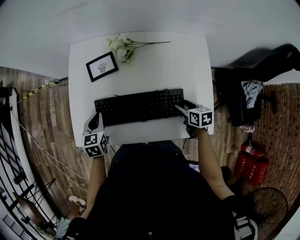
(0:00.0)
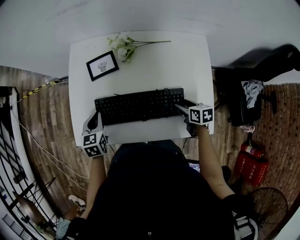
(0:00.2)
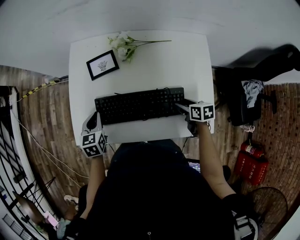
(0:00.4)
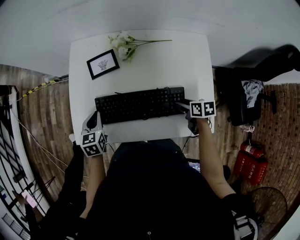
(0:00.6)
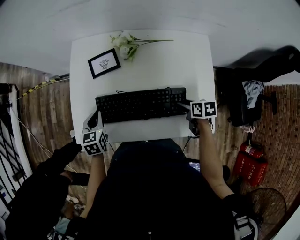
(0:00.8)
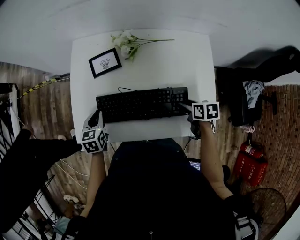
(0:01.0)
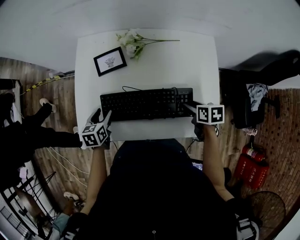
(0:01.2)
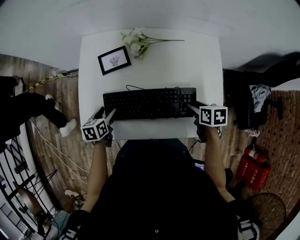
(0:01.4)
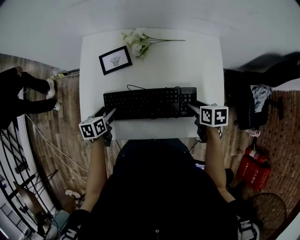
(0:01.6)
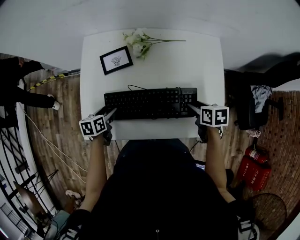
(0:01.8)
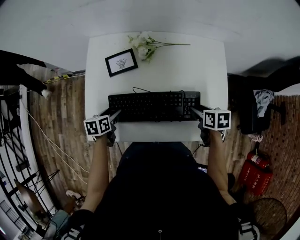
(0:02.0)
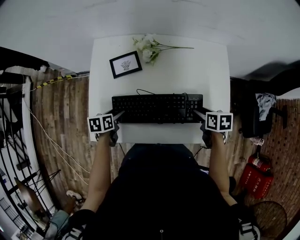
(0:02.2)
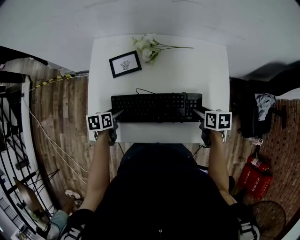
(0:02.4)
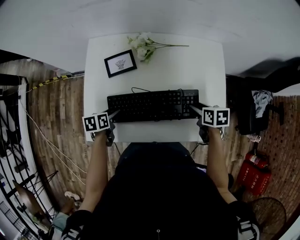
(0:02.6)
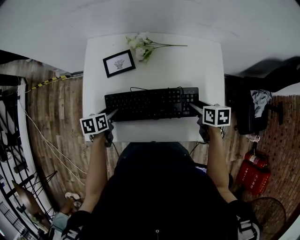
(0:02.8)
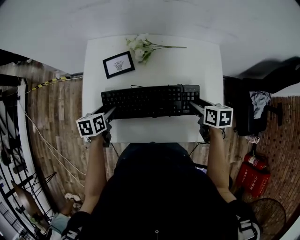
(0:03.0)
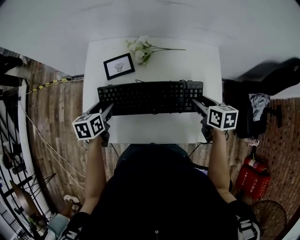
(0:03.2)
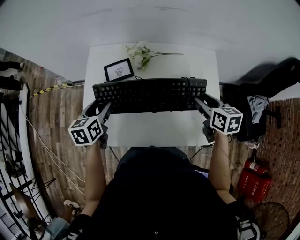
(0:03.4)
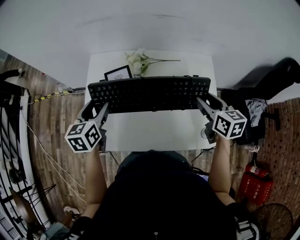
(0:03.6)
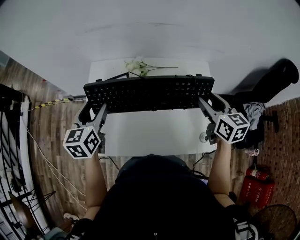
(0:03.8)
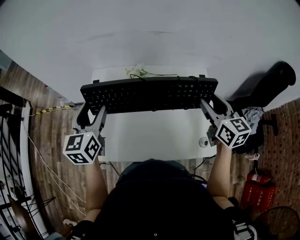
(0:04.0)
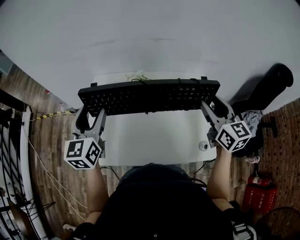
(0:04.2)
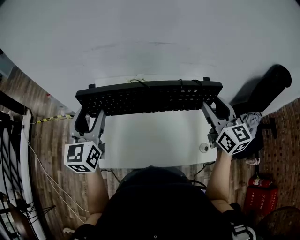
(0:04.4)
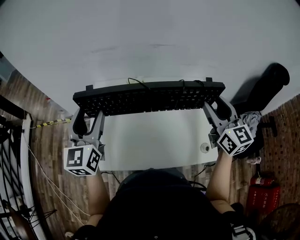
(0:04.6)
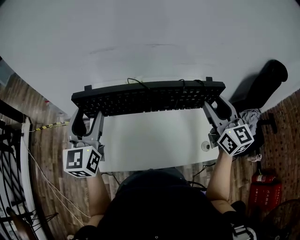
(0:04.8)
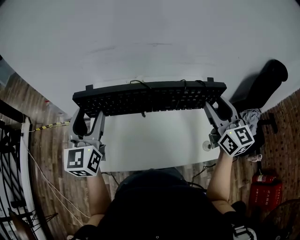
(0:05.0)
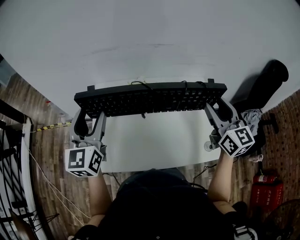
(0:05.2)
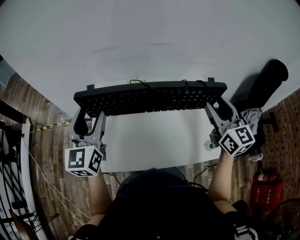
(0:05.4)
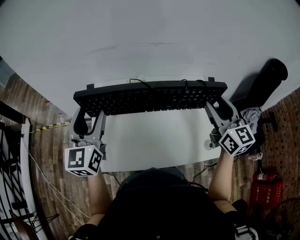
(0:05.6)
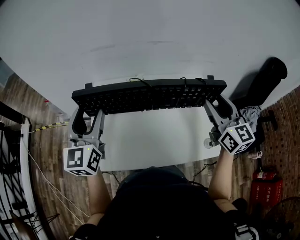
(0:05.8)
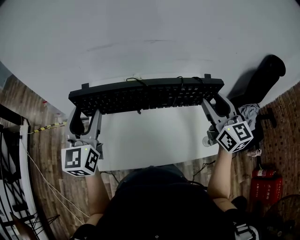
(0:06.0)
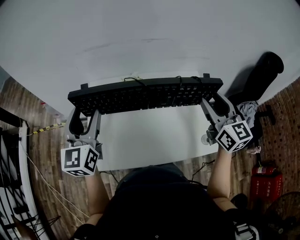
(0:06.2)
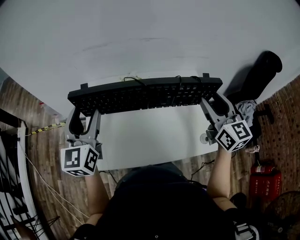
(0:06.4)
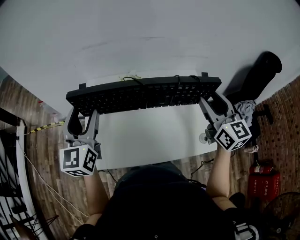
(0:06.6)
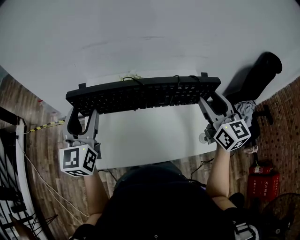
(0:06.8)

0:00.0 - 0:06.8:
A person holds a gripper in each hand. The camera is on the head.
0:00.0 - 0:01.4: The left gripper goes approximately 5 cm downward, swivels about 20 degrees, and opens its fingers.
0:01.4 - 0:02.8: The grippers stay close to where they were, moving slightly.
0:02.8 - 0:04.0: The grippers both shift upward by roughly 25 cm. The right gripper angles its fingers upward, by about 40 degrees. The left gripper points its fingers some 40 degrees further upward.
0:04.0 - 0:05.4: The right gripper moves about 5 cm. The left gripper travels upward by roughly 5 cm.
0:05.4 - 0:06.8: Both grippers stay about where they are.

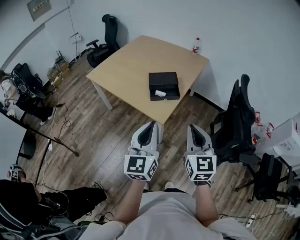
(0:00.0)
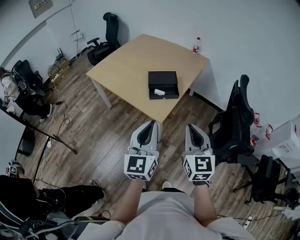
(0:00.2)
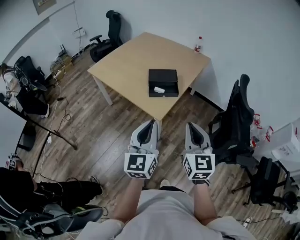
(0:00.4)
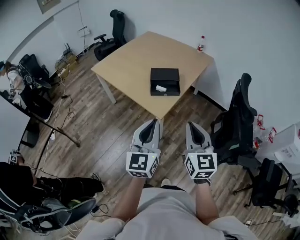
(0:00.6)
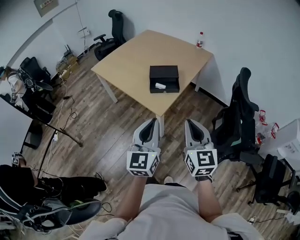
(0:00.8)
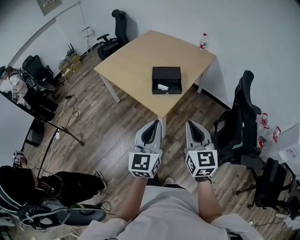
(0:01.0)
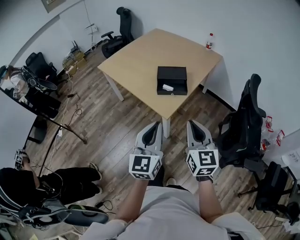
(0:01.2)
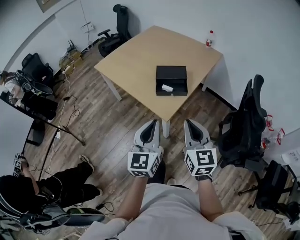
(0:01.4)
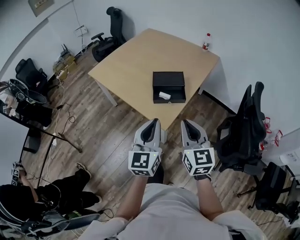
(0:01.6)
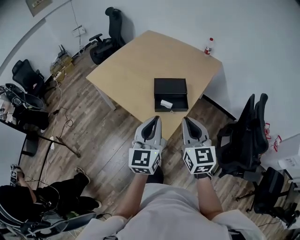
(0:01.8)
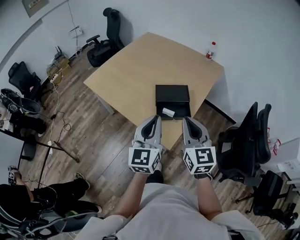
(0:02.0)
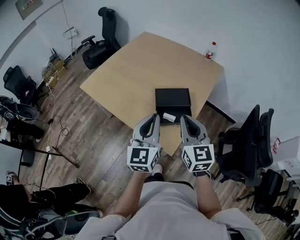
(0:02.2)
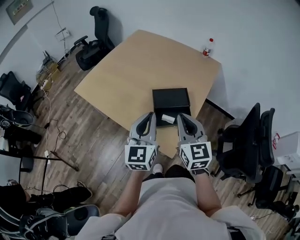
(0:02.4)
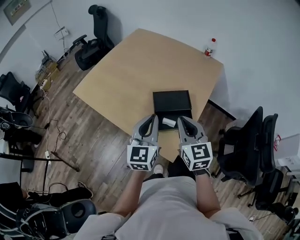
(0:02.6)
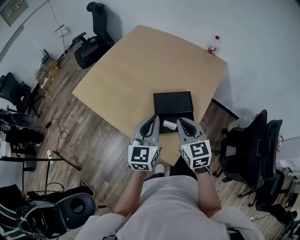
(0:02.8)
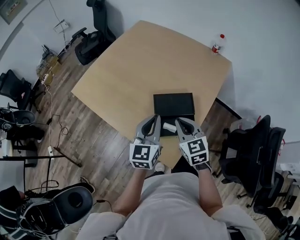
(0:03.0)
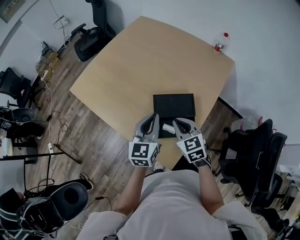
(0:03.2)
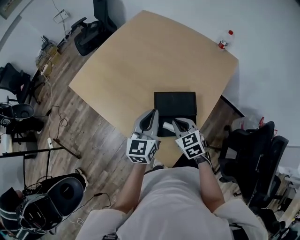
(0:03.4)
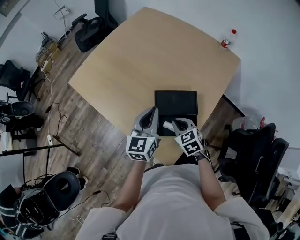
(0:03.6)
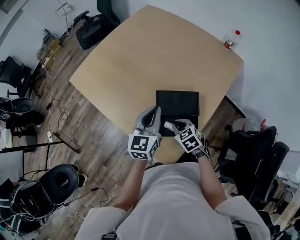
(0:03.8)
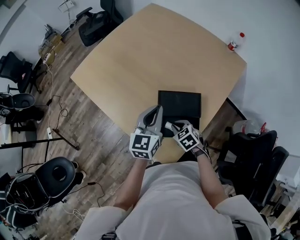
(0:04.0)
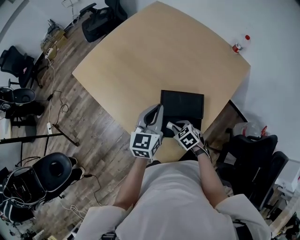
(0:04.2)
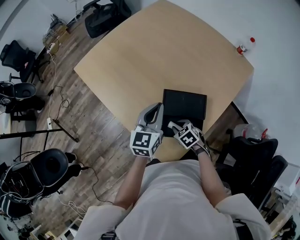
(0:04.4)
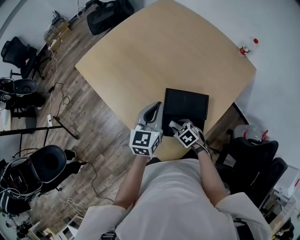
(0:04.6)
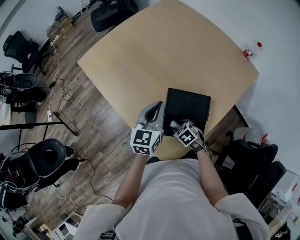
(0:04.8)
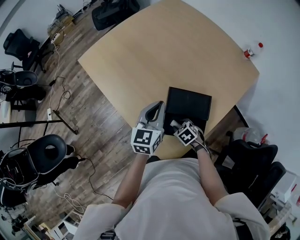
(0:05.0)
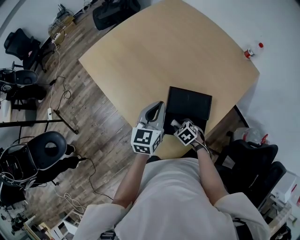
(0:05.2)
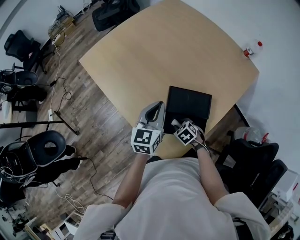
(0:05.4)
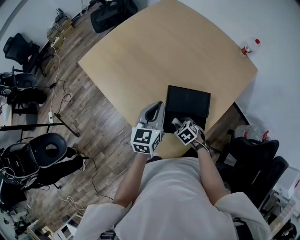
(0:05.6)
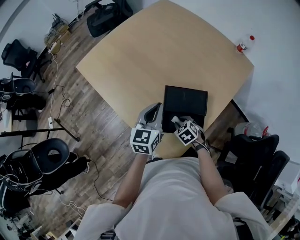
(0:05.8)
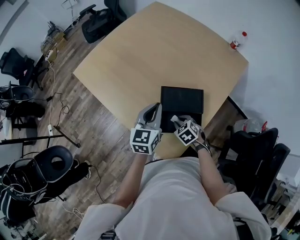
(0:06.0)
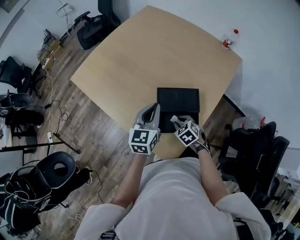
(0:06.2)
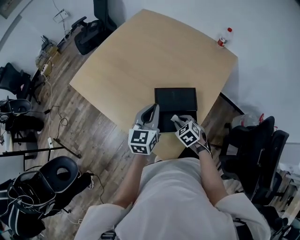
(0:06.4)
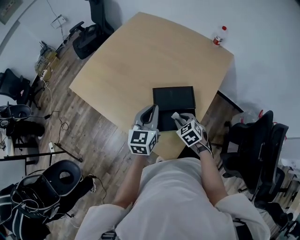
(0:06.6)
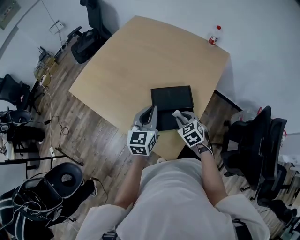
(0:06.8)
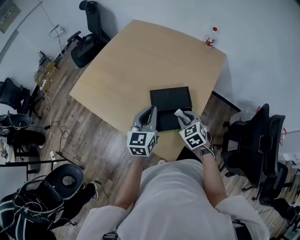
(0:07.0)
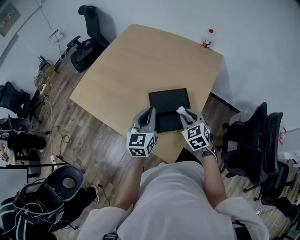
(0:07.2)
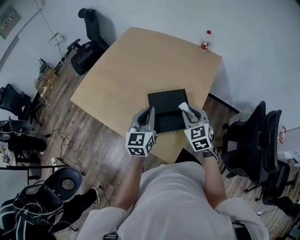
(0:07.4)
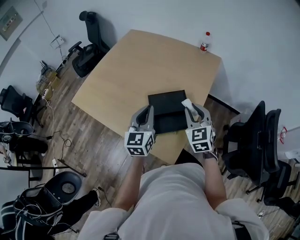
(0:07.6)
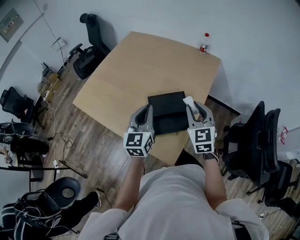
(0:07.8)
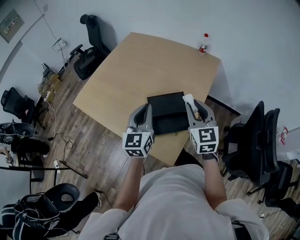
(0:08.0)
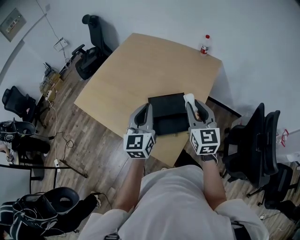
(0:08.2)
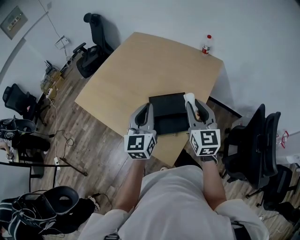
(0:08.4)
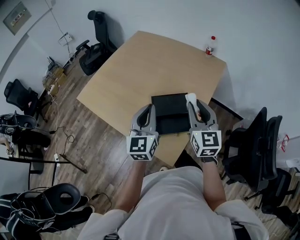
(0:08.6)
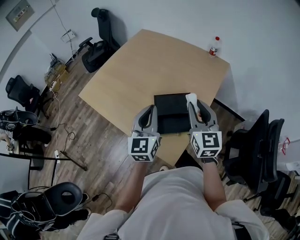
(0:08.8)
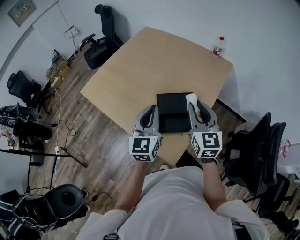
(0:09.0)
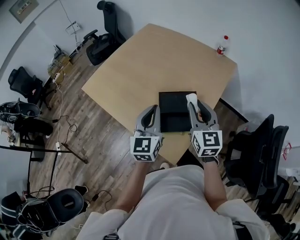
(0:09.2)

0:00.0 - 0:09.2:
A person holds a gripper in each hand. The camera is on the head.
0:00.0 - 0:01.6: Both grippers travel together forward, some 10 cm.
0:01.6 - 0:03.0: The two grippers go about 35 cm forward. The right gripper rotates roughly 20 degrees.
0:03.0 - 0:04.6: The right gripper is displaced downward by roughly 25 cm, angles its fingers downward, by approximately 40 degrees, and opens. Meanwhile the left gripper shifts by about 10 cm.
0:04.6 - 0:06.2: There are only small adjustments of the grippers.
0:06.2 - 0:07.6: The right gripper goes about 25 cm upward, and points its fingers about 40 degrees further upward; the left gripper goes approximately 5 cm upward.
0:07.6 - 0:09.2: The right gripper shifts approximately 5 cm upward, and turns by some 30 degrees.

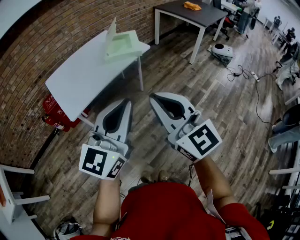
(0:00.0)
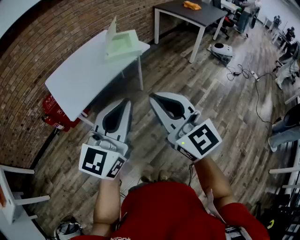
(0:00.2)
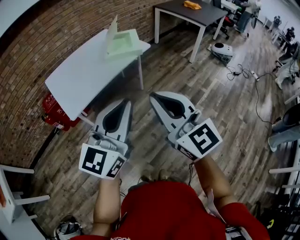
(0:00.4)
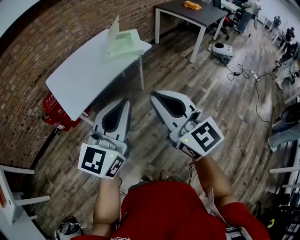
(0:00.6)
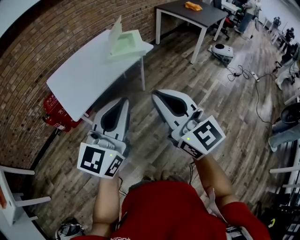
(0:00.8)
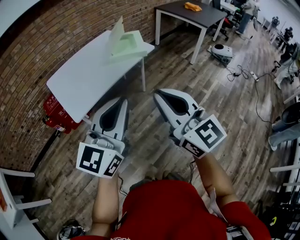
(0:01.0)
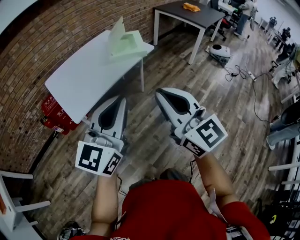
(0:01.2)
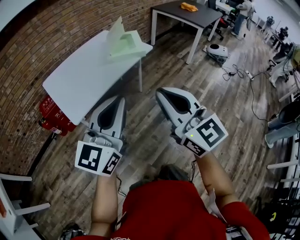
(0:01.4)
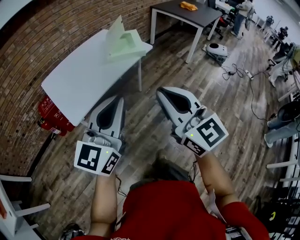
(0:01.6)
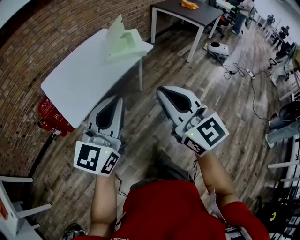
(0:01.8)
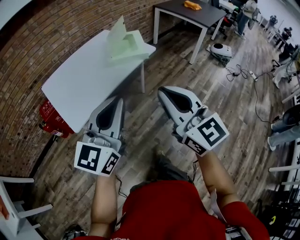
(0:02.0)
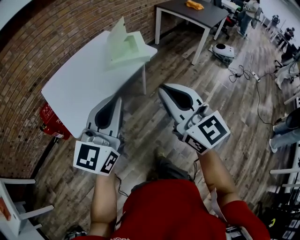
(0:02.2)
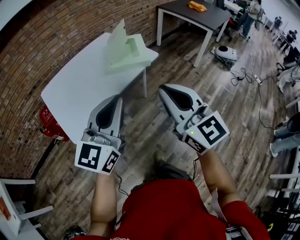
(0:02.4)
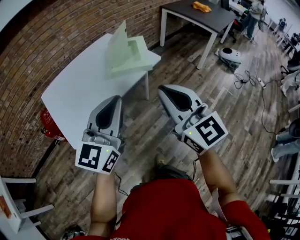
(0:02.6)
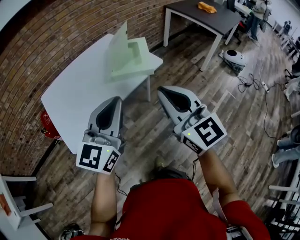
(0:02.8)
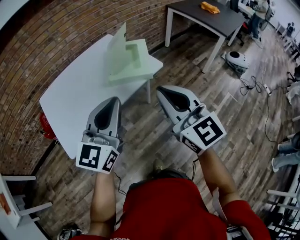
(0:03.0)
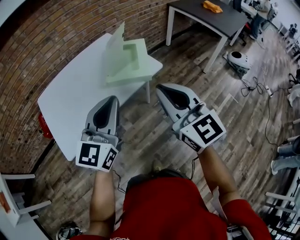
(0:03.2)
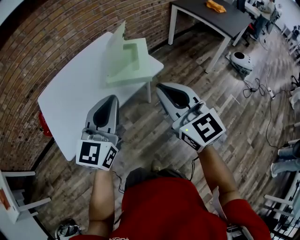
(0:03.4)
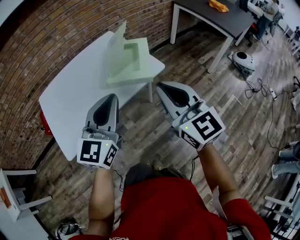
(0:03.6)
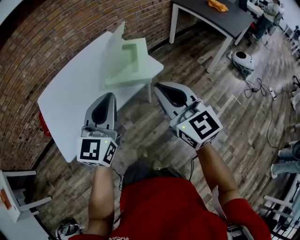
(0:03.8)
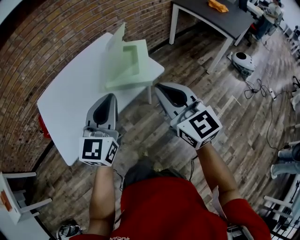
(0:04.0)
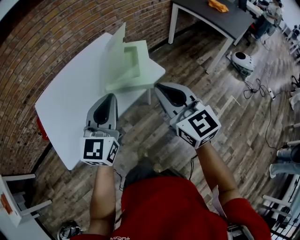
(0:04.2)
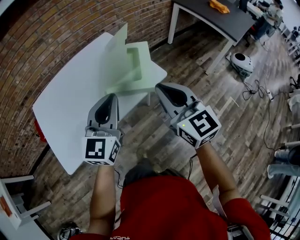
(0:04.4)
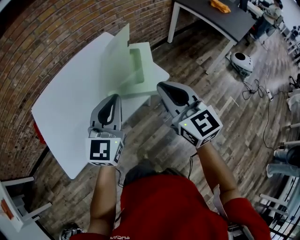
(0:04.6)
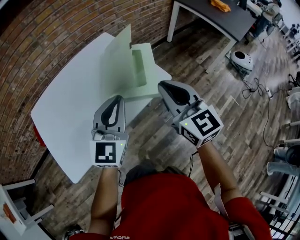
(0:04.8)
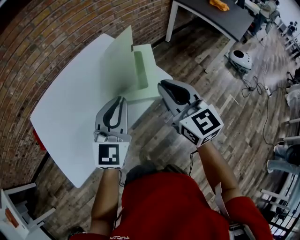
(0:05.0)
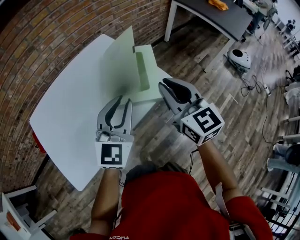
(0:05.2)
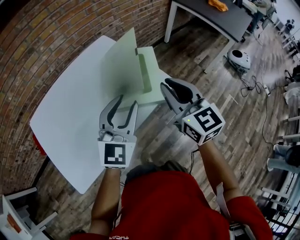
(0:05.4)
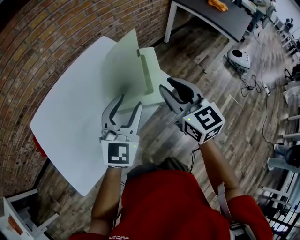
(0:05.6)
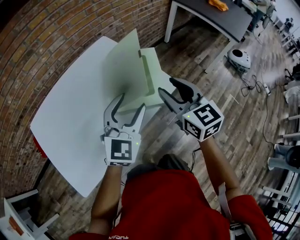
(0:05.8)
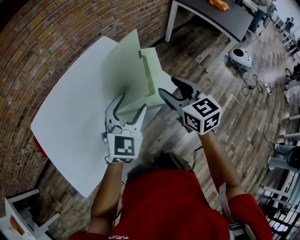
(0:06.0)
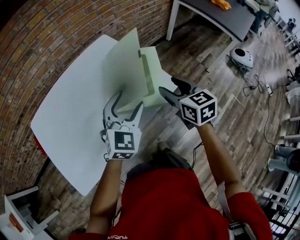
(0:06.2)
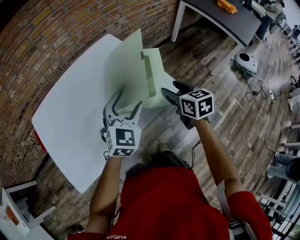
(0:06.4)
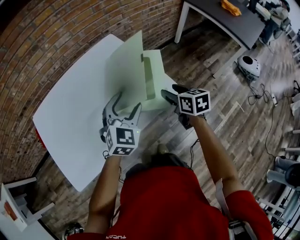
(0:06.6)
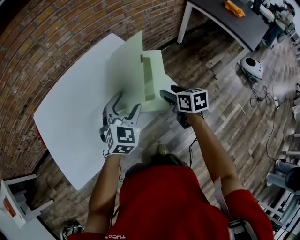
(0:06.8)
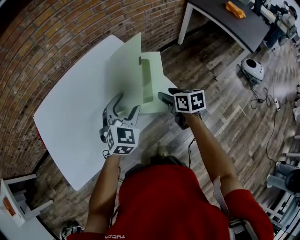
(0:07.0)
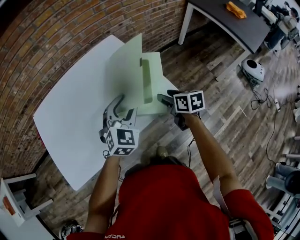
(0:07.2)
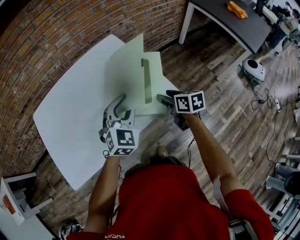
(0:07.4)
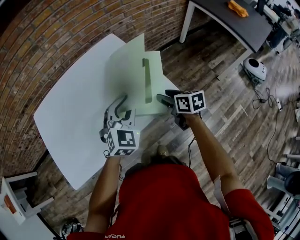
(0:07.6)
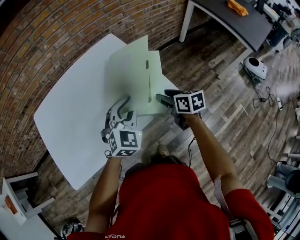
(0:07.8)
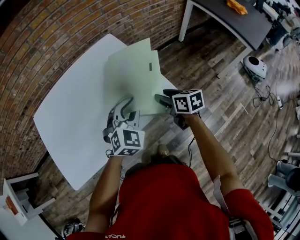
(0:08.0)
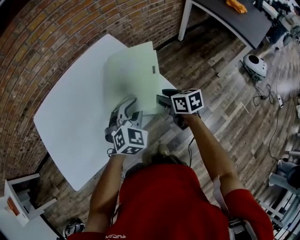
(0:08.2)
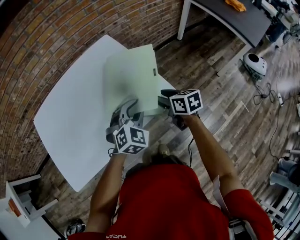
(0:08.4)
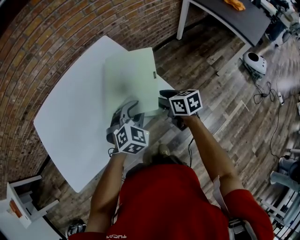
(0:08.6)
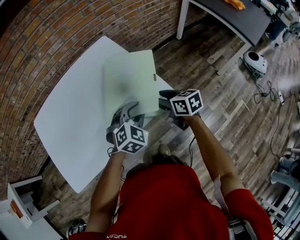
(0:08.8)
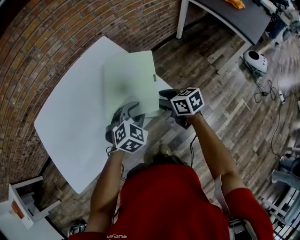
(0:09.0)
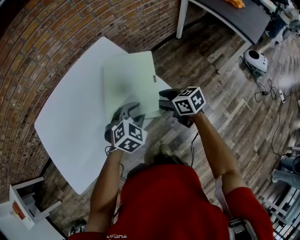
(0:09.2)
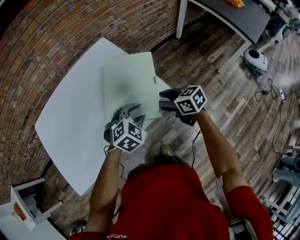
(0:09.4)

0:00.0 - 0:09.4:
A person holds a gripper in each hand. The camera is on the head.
0:00.0 - 0:01.6: The left gripper heads to the left and forward, covering roughly 10 cm. Meanwhile the right gripper goes some 5 cm to the left.
0:01.6 - 0:03.2: Both grippers move forward, approximately 30 cm.
0:03.2 - 0:04.8: Both grippers move forward, approximately 15 cm.
0:04.8 - 0:06.2: The right gripper heads downward and forward, covering some 15 cm, rotates approximately 20 degrees, and opens its fingers, while the left gripper travels forward and downward by roughly 10 cm, swivels roughly 20 degrees, and opens its fingers.
0:06.2 - 0:07.8: The left gripper shifts by about 5 cm, and closes its fingers; the right gripper is displaced downward by roughly 10 cm, and rotates roughly 30 degrees.
0:07.8 - 0:09.4: The left gripper heads downward and to the right, covering about 10 cm, and rotates approximately 30 degrees. The right gripper rotates approximately 20 degrees.
